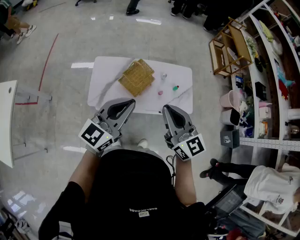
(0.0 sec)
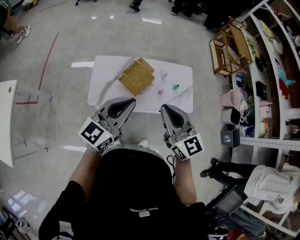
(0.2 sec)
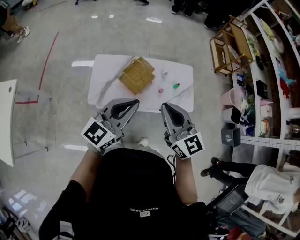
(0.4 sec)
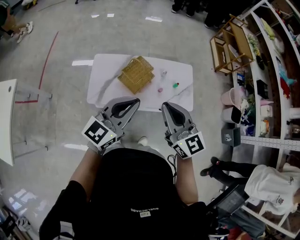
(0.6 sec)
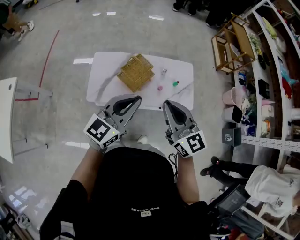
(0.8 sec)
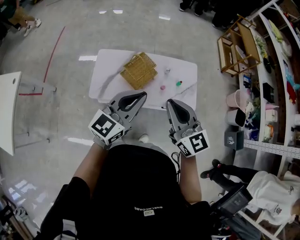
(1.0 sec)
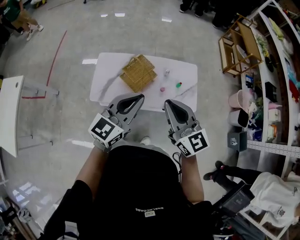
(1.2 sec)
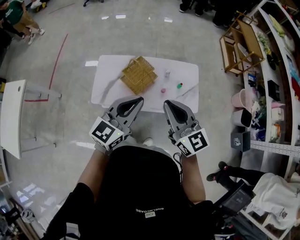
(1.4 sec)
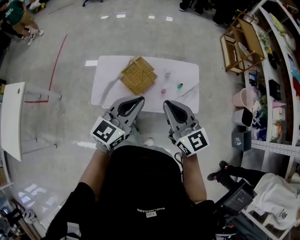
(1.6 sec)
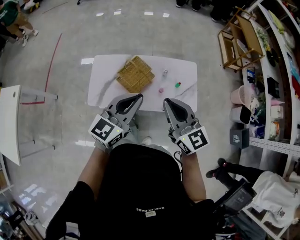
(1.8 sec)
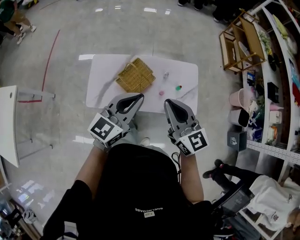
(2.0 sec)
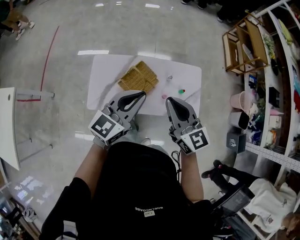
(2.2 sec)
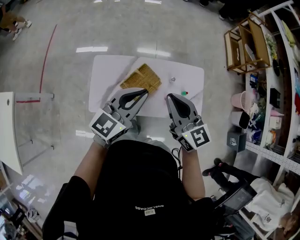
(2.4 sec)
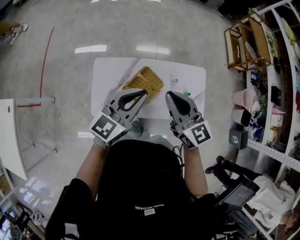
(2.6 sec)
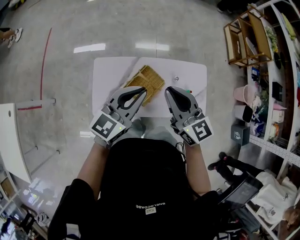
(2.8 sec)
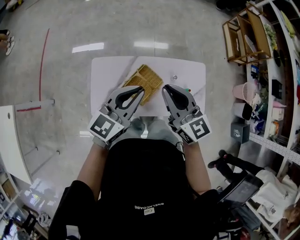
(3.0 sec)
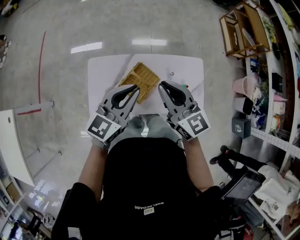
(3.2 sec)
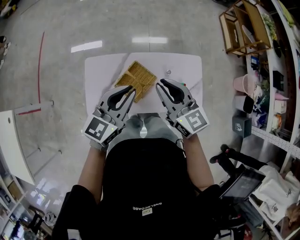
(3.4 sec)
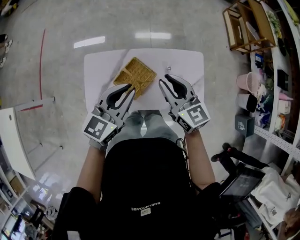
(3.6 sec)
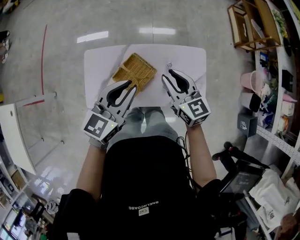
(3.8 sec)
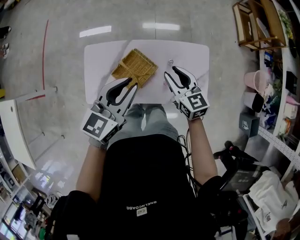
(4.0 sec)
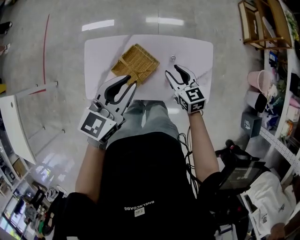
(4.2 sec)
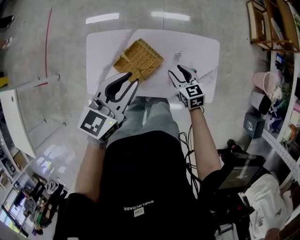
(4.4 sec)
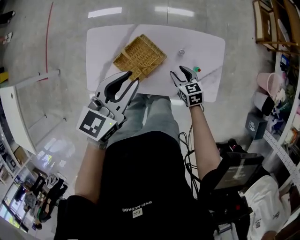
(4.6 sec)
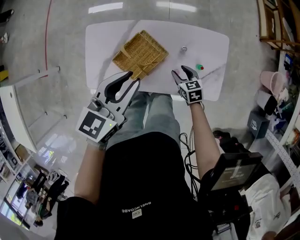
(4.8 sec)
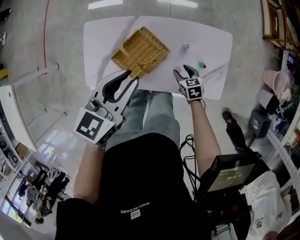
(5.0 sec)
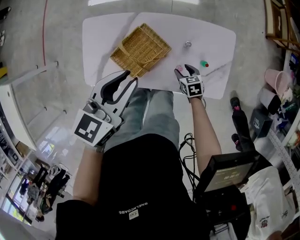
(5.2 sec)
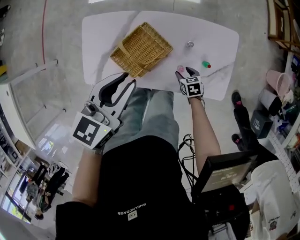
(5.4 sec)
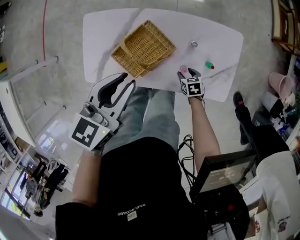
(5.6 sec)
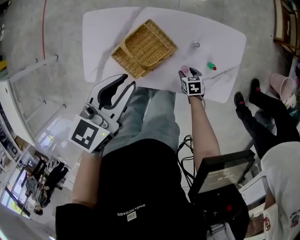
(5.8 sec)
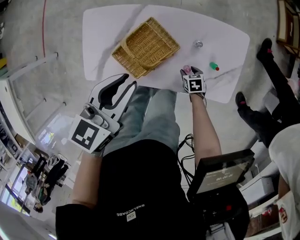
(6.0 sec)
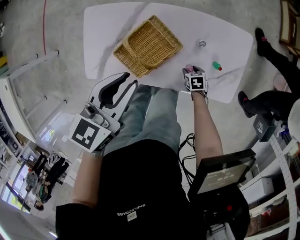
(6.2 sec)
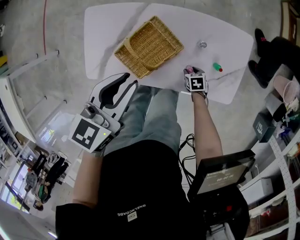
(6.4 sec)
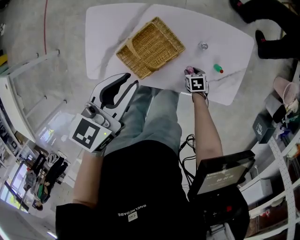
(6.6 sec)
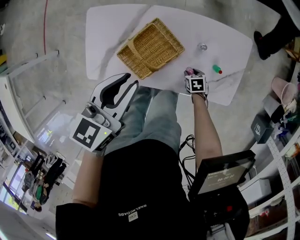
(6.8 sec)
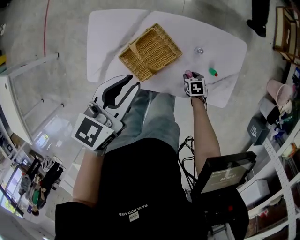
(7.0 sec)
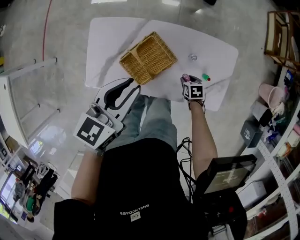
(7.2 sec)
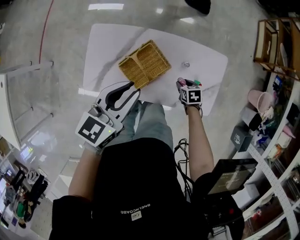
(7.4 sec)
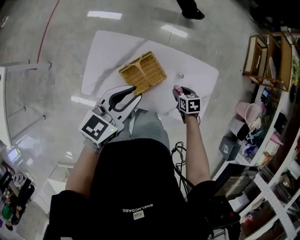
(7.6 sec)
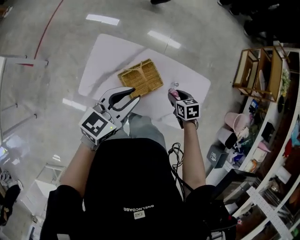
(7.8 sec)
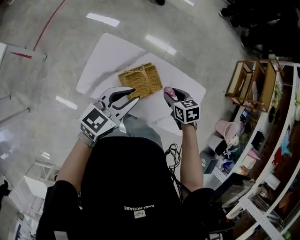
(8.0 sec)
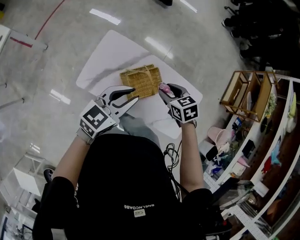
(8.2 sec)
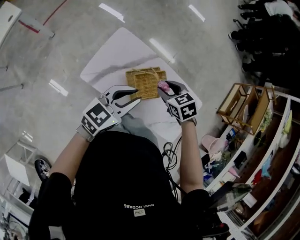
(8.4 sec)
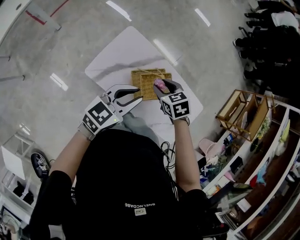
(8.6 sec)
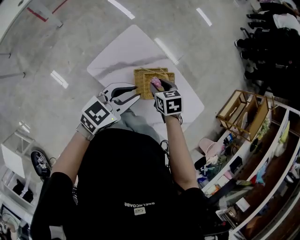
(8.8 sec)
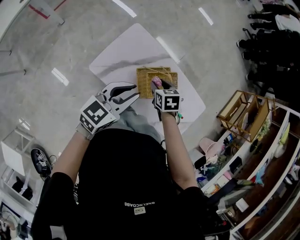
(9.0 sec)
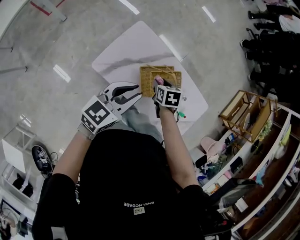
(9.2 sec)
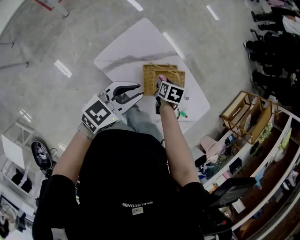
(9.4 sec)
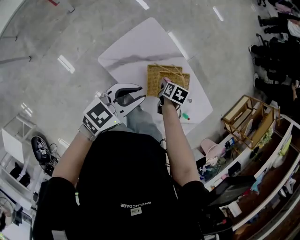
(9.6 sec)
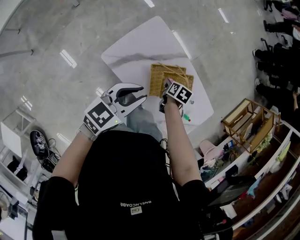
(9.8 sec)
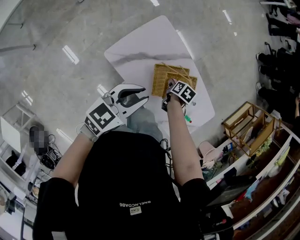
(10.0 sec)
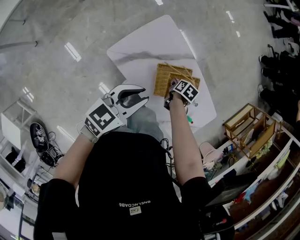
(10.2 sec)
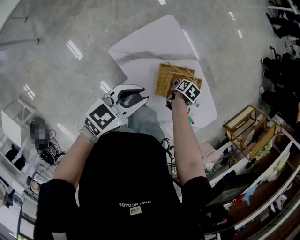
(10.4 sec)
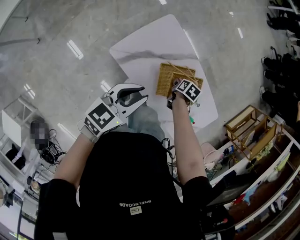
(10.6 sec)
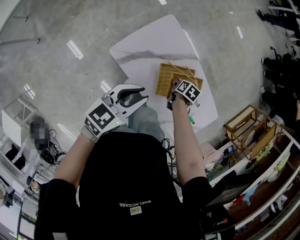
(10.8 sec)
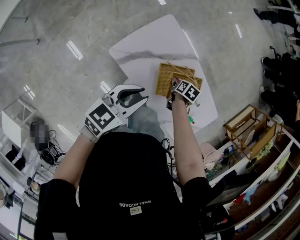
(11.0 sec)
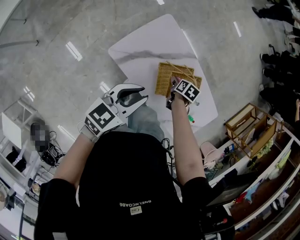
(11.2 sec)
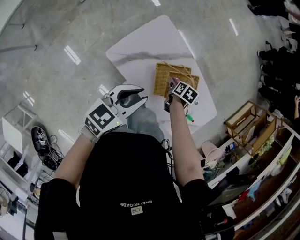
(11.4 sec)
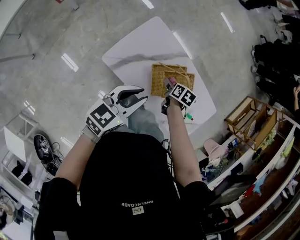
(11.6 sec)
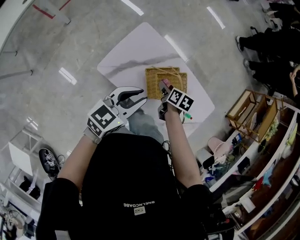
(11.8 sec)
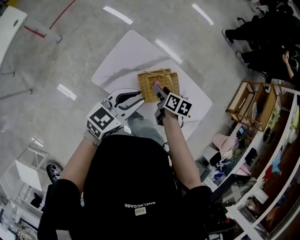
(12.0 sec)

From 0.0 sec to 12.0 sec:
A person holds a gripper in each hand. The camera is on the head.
From 0.0 sec to 1.6 sec: Both grippers move to the right, some 10 cm.
From 1.6 sec to 3.0 sec: Both grippers move forward and to the left, roughly 25 cm.
From 3.0 sec to 4.4 sec: The right gripper is displaced downward and to the right by about 35 cm, turns by roughly 30 degrees, and opens up. Meanwhile the left gripper travels to the right and downward by some 10 cm.
From 4.4 sec to 6.0 sec: The right gripper travels downward by approximately 30 cm, and tilts its fingers roughly 30 degrees downward. Meanwhile the left gripper shifts about 10 cm downward.
From 6.0 sec to 7.6 sec: The left gripper shifts roughly 10 cm upward, while the right gripper is displaced upward by some 20 cm.
From 7.6 sec to 9.0 sec: The right gripper is displaced to the left and upward by some 30 cm, and swivels approximately 30 degrees. The left gripper is displaced to the left by about 20 cm.
From 9.0 sec to 10.4 sec: The right gripper shifts approximately 15 cm downward, and changes its angle by approximately 40 degrees, while the left gripper heads downward, covering about 5 cm.
From 10.4 sec to 12.0 sec: The left gripper is displaced upward and to the right by approximately 10 cm. The right gripper heads upward, covering some 15 cm, and rotates roughly 30 degrees.

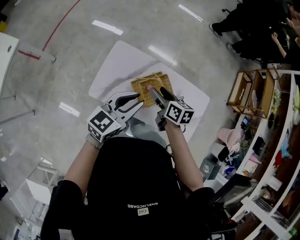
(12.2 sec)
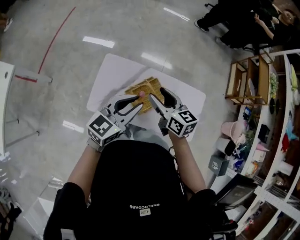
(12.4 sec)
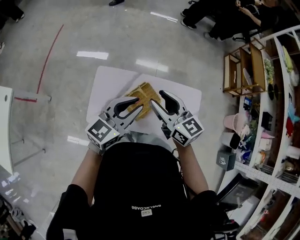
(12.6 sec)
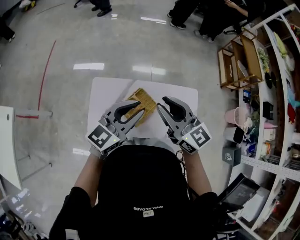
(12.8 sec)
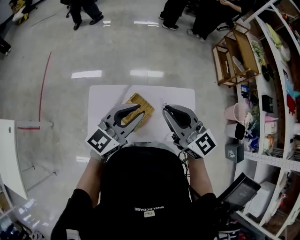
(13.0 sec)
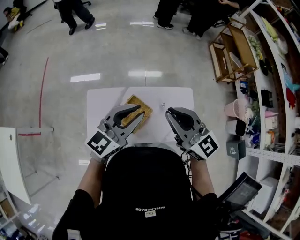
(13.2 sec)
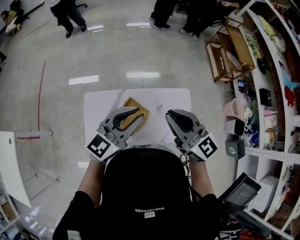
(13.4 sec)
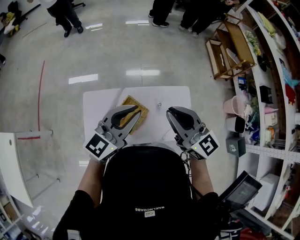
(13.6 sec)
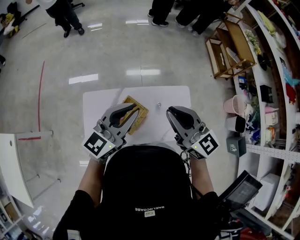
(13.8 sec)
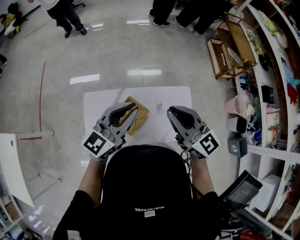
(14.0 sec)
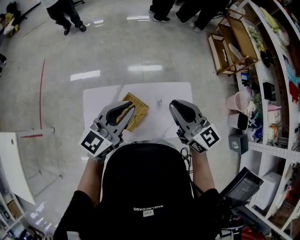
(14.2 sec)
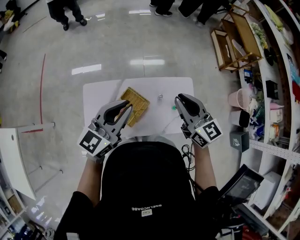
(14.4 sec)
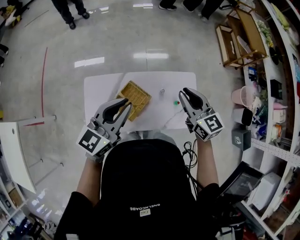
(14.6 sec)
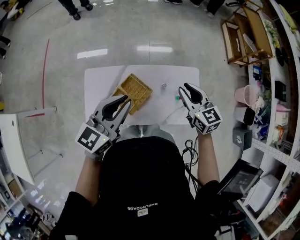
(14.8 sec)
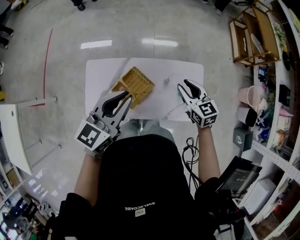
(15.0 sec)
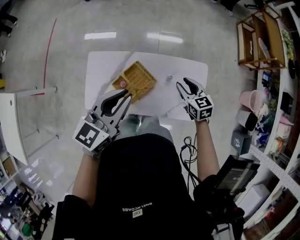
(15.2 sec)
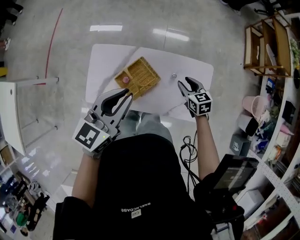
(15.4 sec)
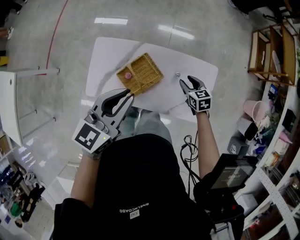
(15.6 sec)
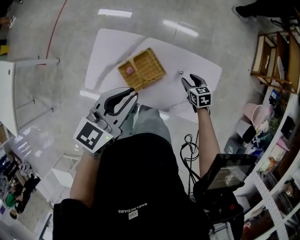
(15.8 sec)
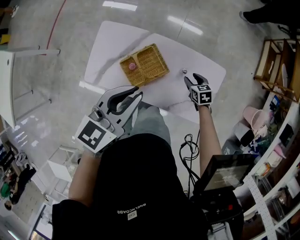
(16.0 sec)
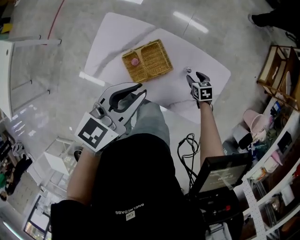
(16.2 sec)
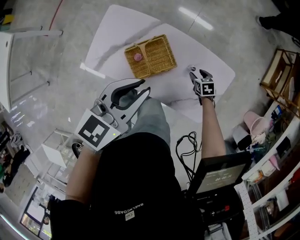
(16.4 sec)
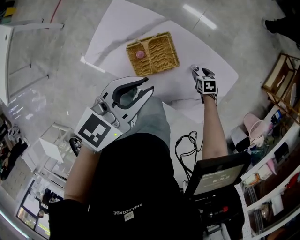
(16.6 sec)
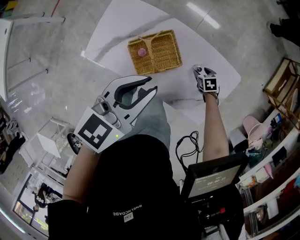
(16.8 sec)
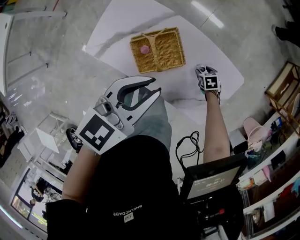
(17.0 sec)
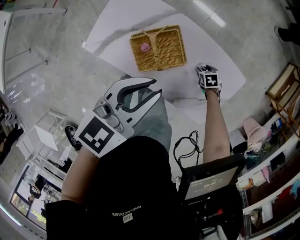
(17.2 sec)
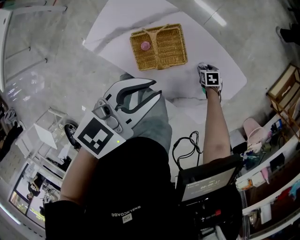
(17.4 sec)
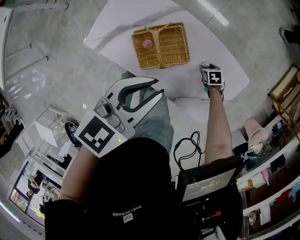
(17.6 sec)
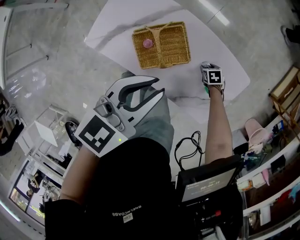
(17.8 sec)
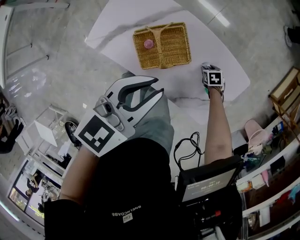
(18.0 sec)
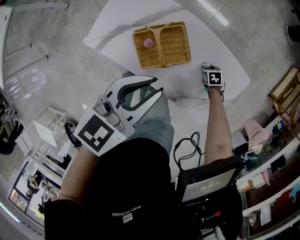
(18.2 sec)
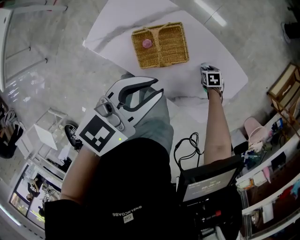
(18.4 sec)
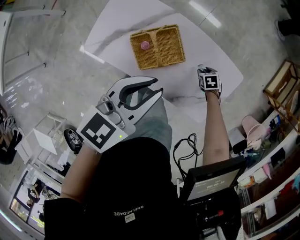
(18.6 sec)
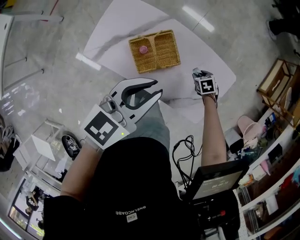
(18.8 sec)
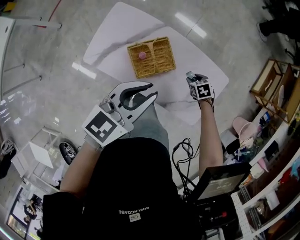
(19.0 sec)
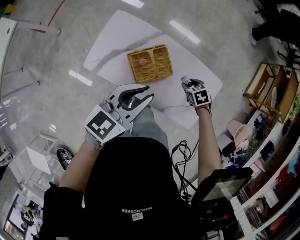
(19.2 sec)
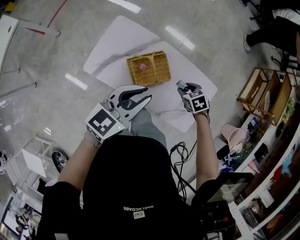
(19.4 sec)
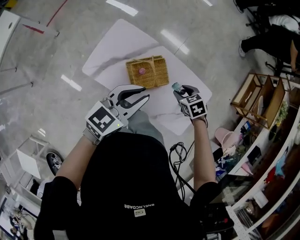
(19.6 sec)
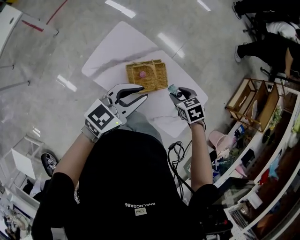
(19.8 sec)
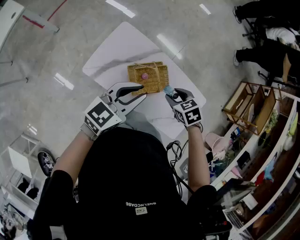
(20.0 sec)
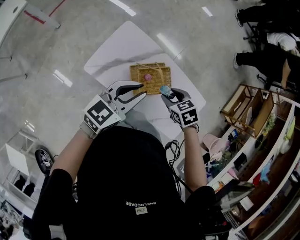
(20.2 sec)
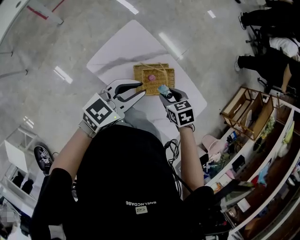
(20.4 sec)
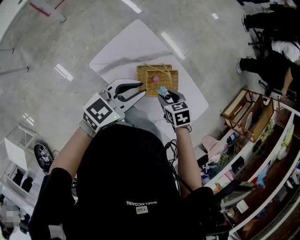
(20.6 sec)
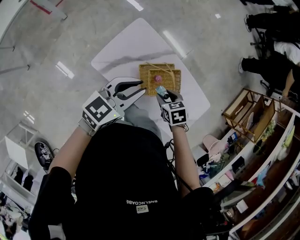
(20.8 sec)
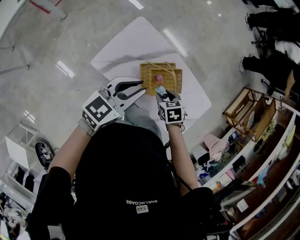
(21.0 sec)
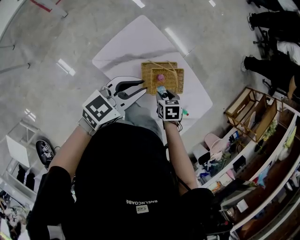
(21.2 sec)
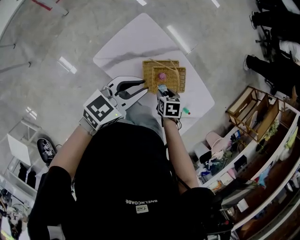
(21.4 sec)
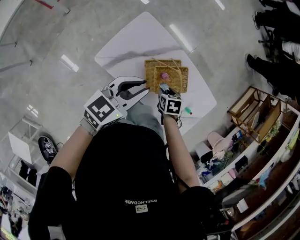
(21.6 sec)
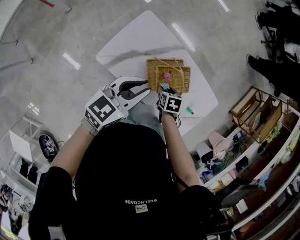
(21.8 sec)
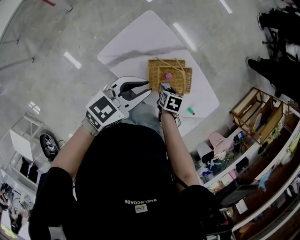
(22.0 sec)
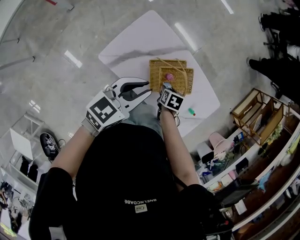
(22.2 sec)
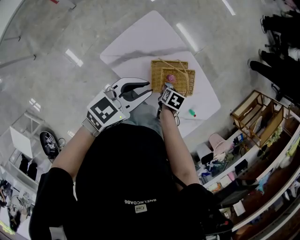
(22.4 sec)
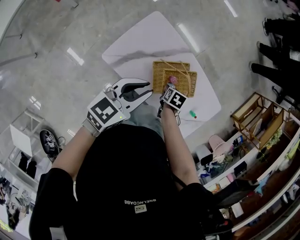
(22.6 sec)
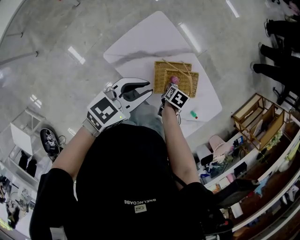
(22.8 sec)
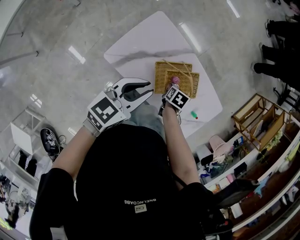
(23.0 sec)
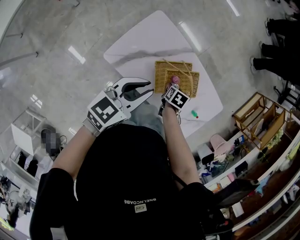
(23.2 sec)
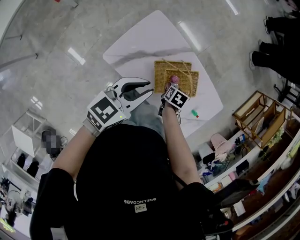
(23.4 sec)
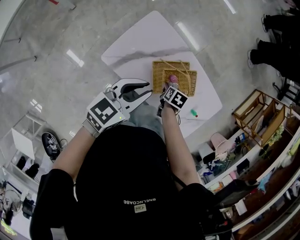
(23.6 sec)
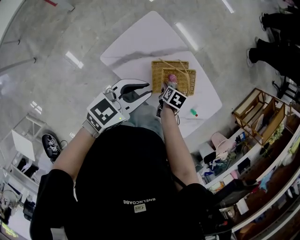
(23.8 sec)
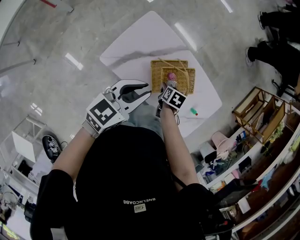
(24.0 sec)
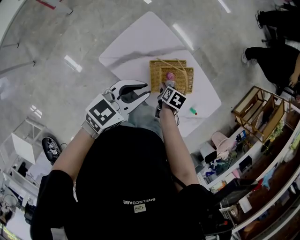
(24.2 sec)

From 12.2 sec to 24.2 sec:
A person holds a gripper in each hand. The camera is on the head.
From 12.2 sec to 13.8 sec: The left gripper goes approximately 25 cm to the right, upward and forward, and turns by roughly 30 degrees. The right gripper travels upward and to the right by about 35 cm, tips its fingers upward by about 40 degrees, and closes.
From 13.8 sec to 15.2 sec: The left gripper shifts roughly 10 cm downward, and rotates about 20 degrees. The right gripper travels downward by some 30 cm, tilts its fingers approximately 40 degrees downward, and opens up.
From 15.2 sec to 16.6 sec: The right gripper moves downward, about 30 cm, tips its fingers downward by some 30 degrees, and opens. The left gripper goes about 10 cm downward.
From 16.6 sec to 18.2 sec: The left gripper goes about 5 cm downward. The right gripper goes approximately 10 cm downward.
From 18.2 sec to 19.8 sec: The right gripper heads upward, covering approximately 35 cm, and changes its angle by about 20 degrees, while the left gripper moves approximately 15 cm.
From 19.8 sec to 21.2 sec: The right gripper shifts about 15 cm to the left and downward; the left gripper shifts some 10 cm to the left.
From 21.2 sec to 22.6 sec: The right gripper travels downward by roughly 10 cm, and changes its angle by about 30 degrees.
From 22.6 sec to 24.2 sec: The grippers make only small movements.
